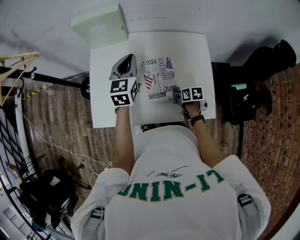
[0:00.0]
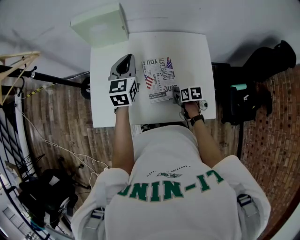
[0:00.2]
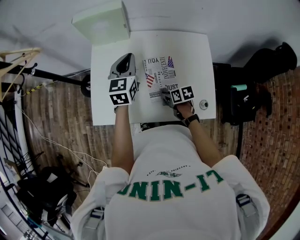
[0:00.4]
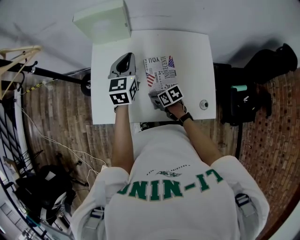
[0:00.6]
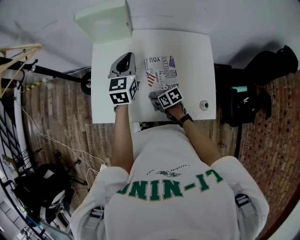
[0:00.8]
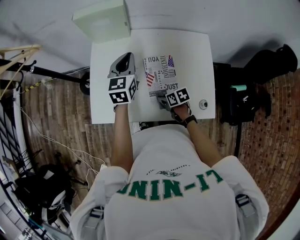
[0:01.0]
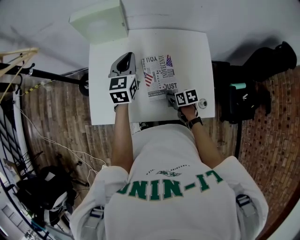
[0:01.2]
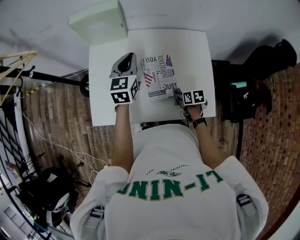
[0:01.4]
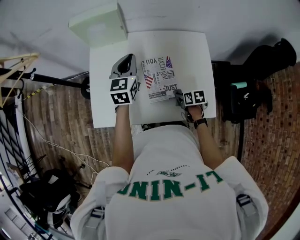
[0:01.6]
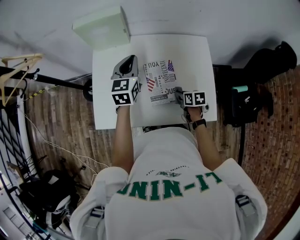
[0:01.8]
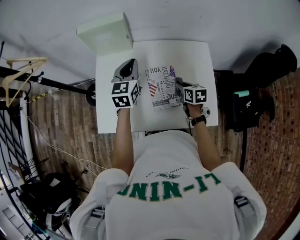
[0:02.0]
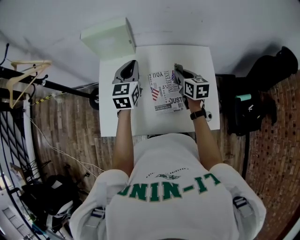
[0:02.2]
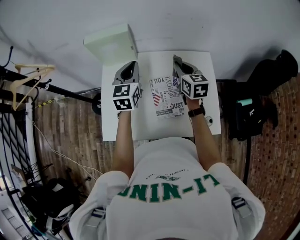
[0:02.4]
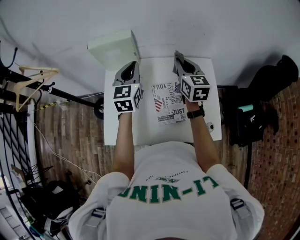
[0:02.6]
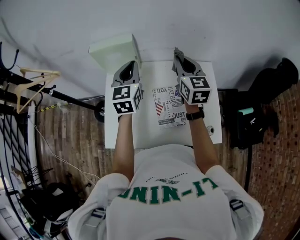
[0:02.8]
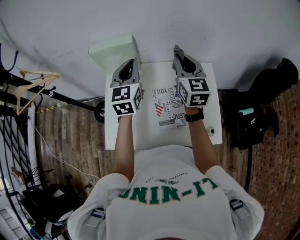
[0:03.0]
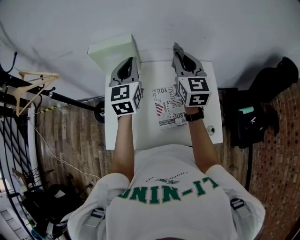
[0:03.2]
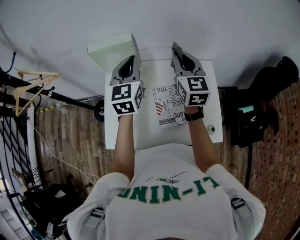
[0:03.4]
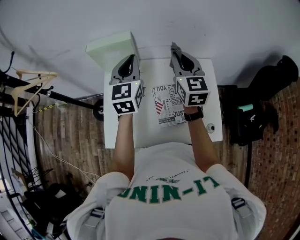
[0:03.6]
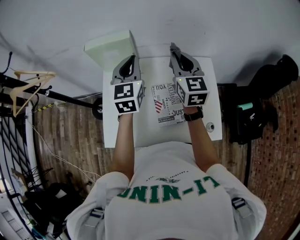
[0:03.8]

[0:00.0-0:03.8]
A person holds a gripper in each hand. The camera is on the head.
0:00.0 to 0:01.2: The right gripper travels to the left and back again, approximately 15 cm each way.
0:01.2 to 0:02.6: The left gripper goes roughly 10 cm upward. The right gripper travels upward and forward by approximately 40 cm, and points its fingers some 40 degrees further upward.
0:02.6 to 0:03.8: The right gripper travels upward by approximately 5 cm.

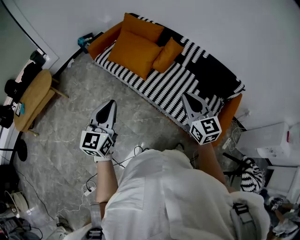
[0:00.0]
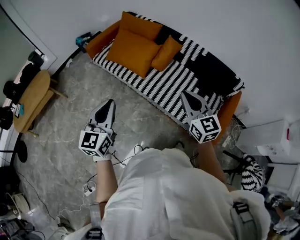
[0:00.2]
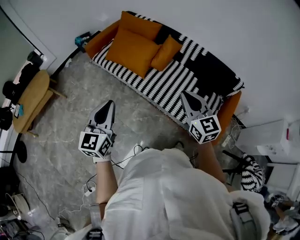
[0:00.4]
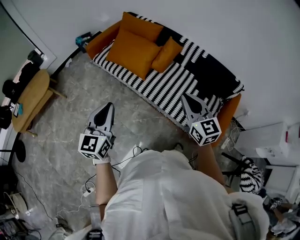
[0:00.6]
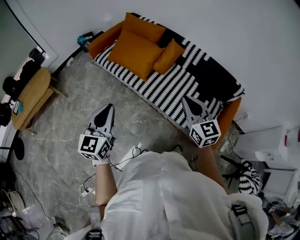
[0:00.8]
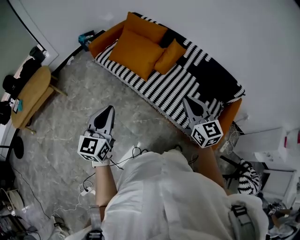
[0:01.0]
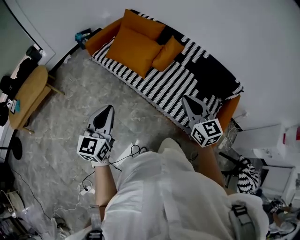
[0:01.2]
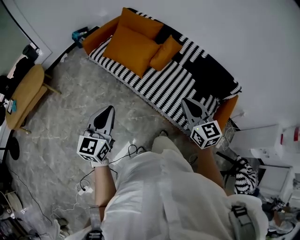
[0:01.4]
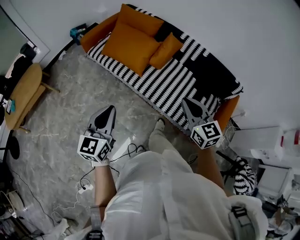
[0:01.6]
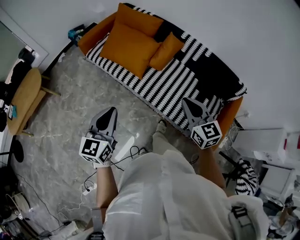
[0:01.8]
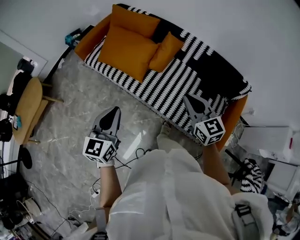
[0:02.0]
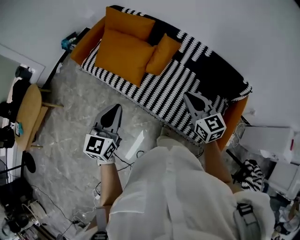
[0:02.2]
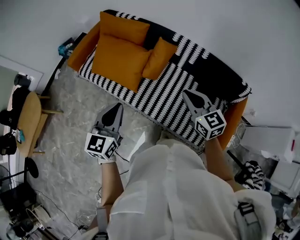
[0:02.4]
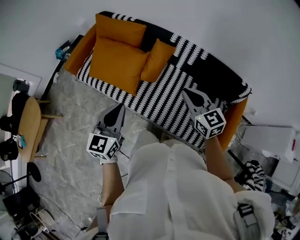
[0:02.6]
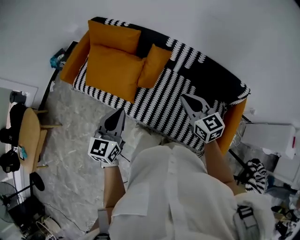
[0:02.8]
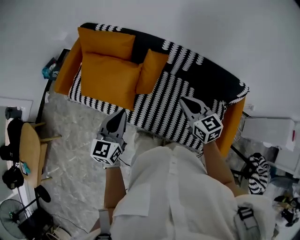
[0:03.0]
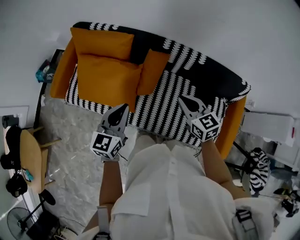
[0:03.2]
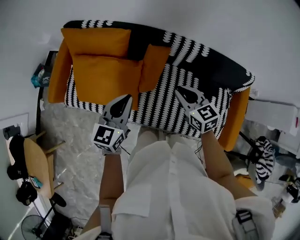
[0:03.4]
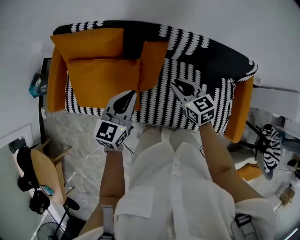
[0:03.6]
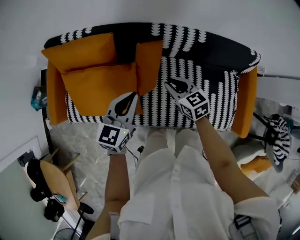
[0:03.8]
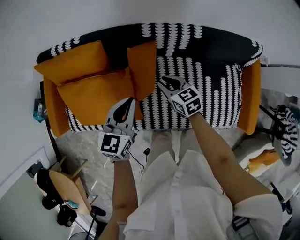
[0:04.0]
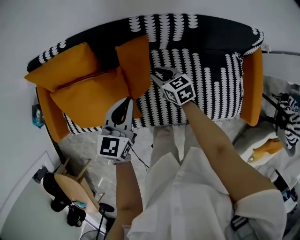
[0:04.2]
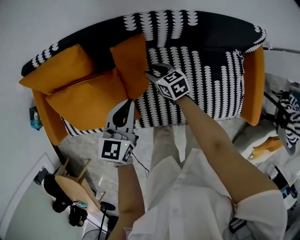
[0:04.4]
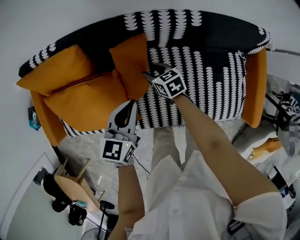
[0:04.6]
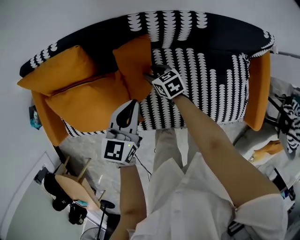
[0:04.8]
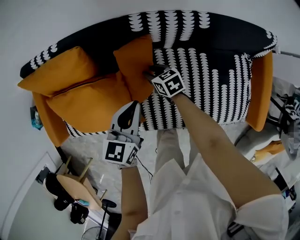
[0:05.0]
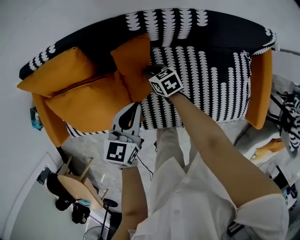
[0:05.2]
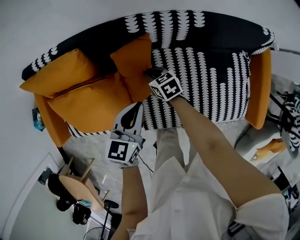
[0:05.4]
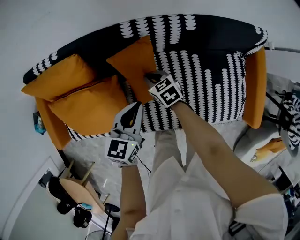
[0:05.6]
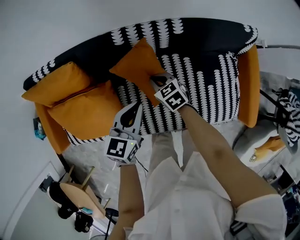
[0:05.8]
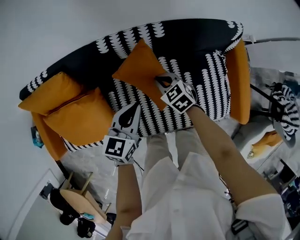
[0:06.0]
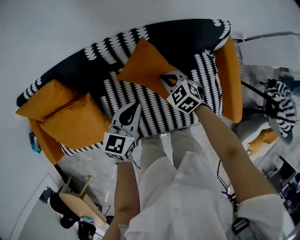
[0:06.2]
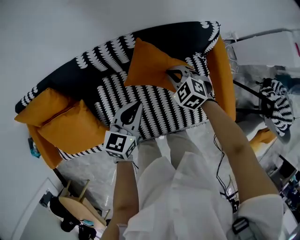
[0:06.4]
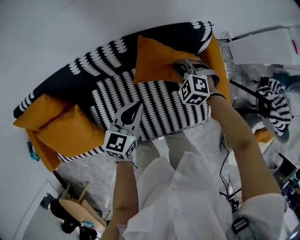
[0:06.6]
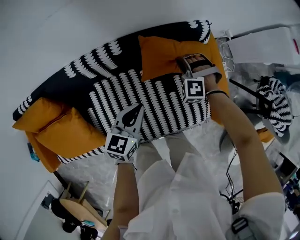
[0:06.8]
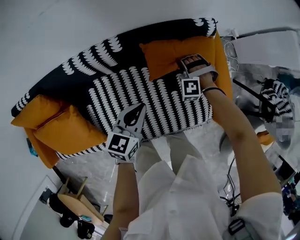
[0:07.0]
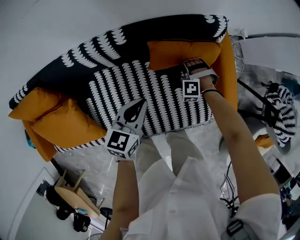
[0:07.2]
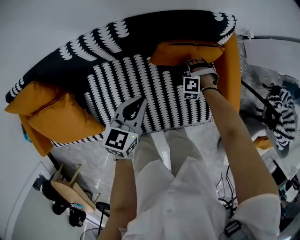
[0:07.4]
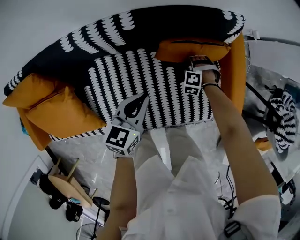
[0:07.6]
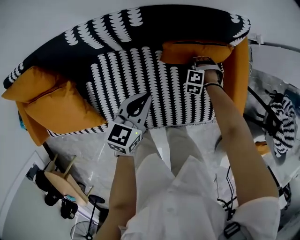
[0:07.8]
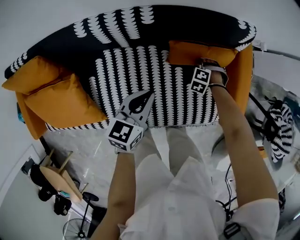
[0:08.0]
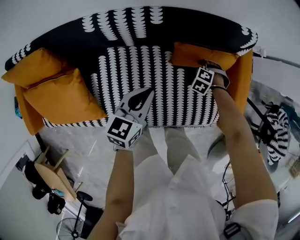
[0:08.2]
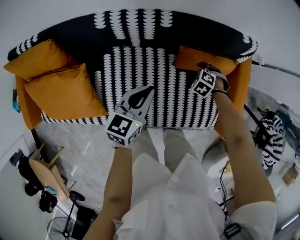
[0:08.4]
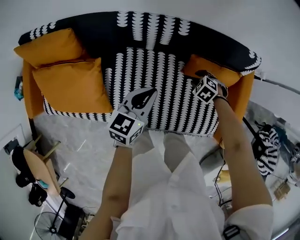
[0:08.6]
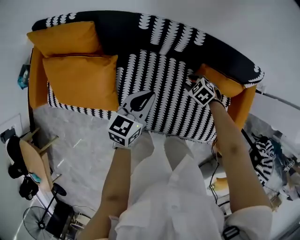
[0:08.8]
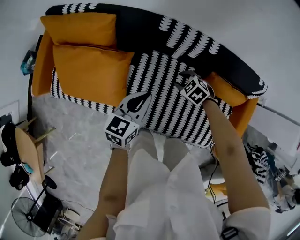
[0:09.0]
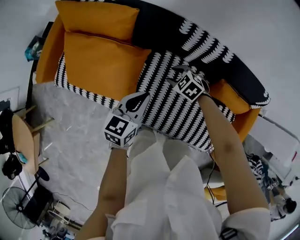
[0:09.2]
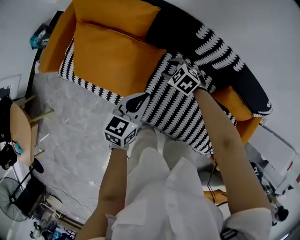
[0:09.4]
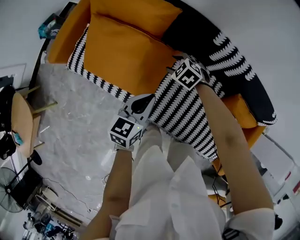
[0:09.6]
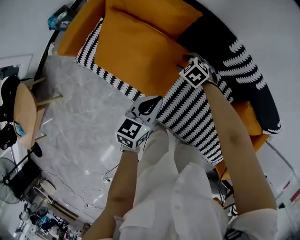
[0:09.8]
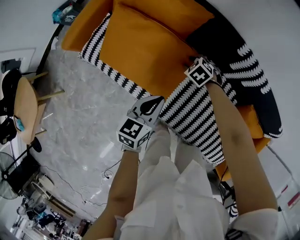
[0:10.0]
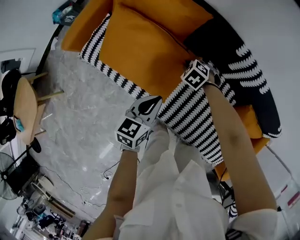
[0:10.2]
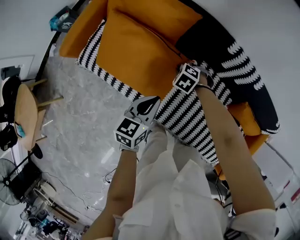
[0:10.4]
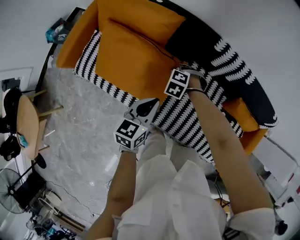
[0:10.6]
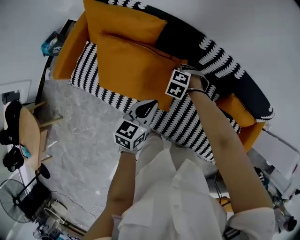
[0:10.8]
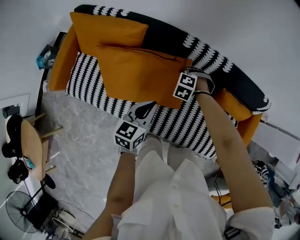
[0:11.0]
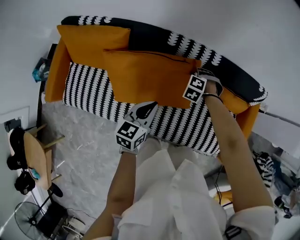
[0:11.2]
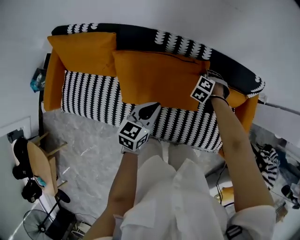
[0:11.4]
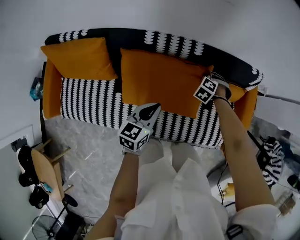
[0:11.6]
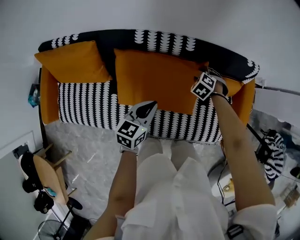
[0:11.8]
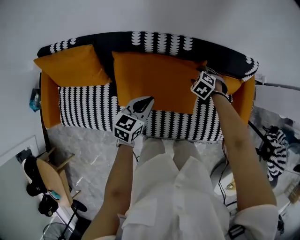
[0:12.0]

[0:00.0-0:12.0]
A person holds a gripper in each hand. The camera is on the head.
0:00.0 to 0:01.6: The right gripper moves roughly 5 cm. Meanwhile the left gripper changes place by about 5 cm.
0:01.6 to 0:03.0: The grippers both shift forward by about 35 cm.
0:03.0 to 0:04.4: The left gripper goes about 30 cm forward and downward, and swivels some 30 degrees, while the right gripper heads downward and forward, covering roughly 40 cm, changes its angle by about 30 degrees, and opens.
0:04.4 to 0:06.0: Both grippers move to the right, roughly 15 cm. The right gripper turns by some 20 degrees, and closes up.
0:06.0 to 0:07.6: The left gripper shifts by roughly 20 cm. The right gripper shifts by some 35 cm, and rolls counterclockwise, seen from behind, by about 60 degrees.
0:07.6 to 0:09.0: The right gripper ends up roughly 35 cm from where it was, rotates roughly 40 degrees, and opens its fingers. The left gripper changes place by about 25 cm, and rotates approximately 20 degrees.
0:09.0 to 0:10.4: The left gripper changes place by about 20 cm. Meanwhile the right gripper ends up approximately 30 cm from where it was, rotates approximately 30 degrees, and closes.
0:10.4 to 0:12.0: The left gripper changes place by some 30 cm, and changes its angle by about 40 degrees. Meanwhile the right gripper ends up approximately 50 cm from where it was, rotates about 30 degrees, and opens its fingers.

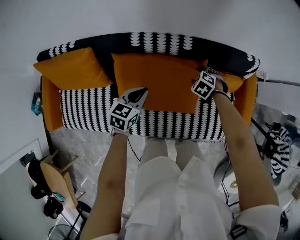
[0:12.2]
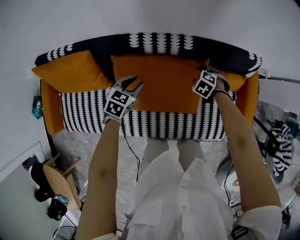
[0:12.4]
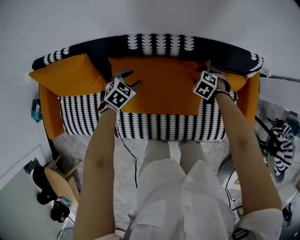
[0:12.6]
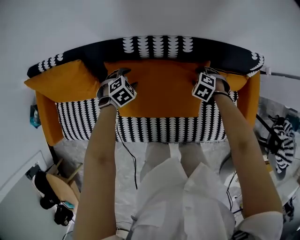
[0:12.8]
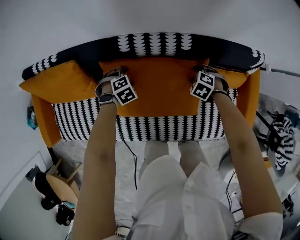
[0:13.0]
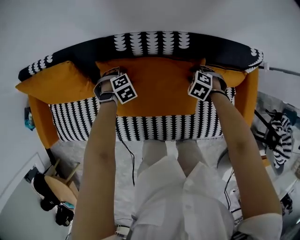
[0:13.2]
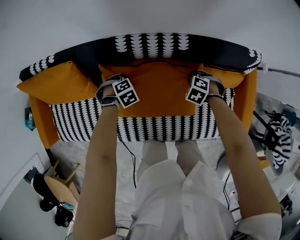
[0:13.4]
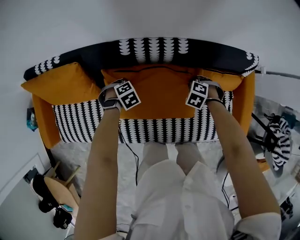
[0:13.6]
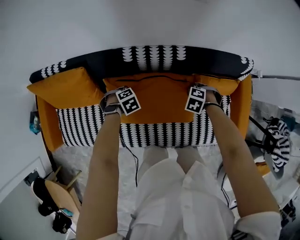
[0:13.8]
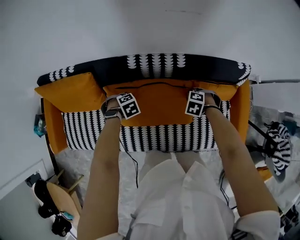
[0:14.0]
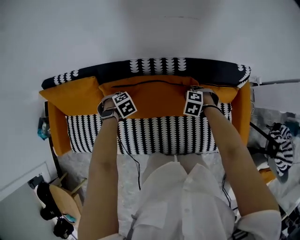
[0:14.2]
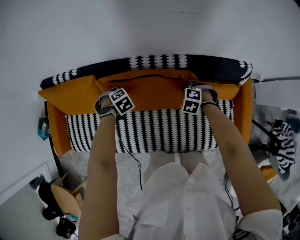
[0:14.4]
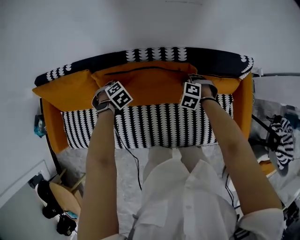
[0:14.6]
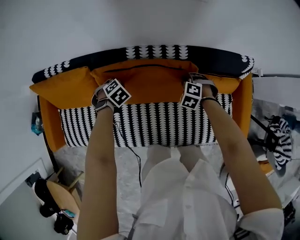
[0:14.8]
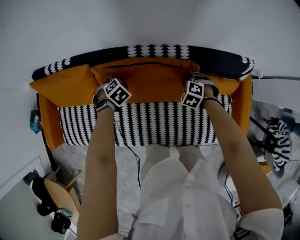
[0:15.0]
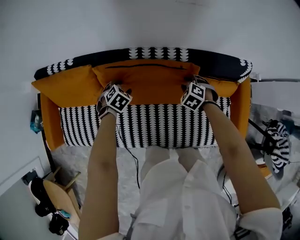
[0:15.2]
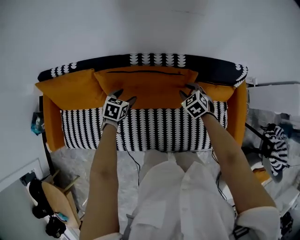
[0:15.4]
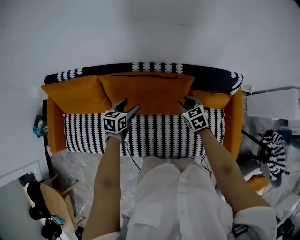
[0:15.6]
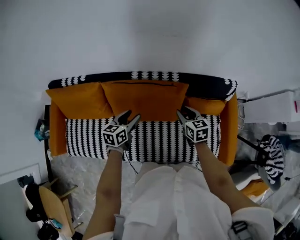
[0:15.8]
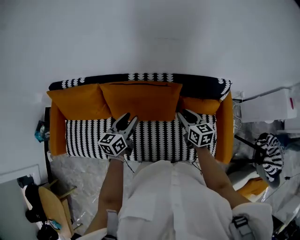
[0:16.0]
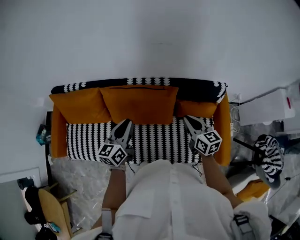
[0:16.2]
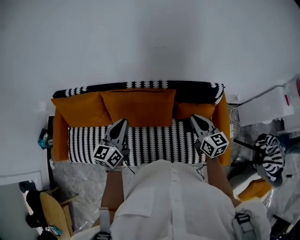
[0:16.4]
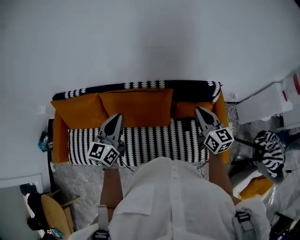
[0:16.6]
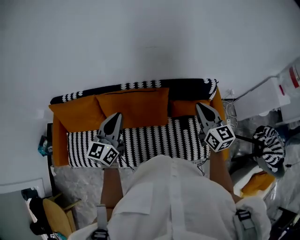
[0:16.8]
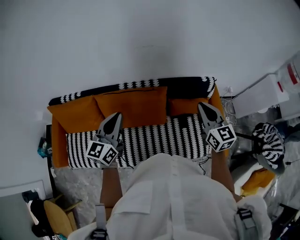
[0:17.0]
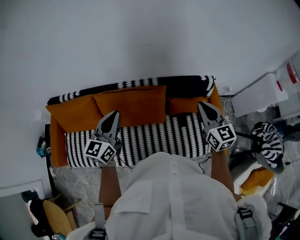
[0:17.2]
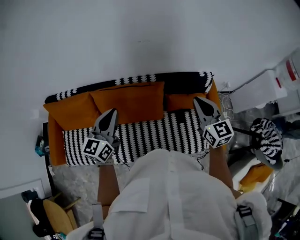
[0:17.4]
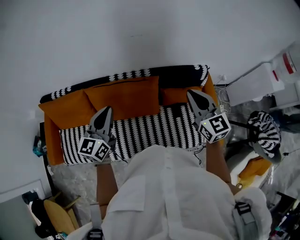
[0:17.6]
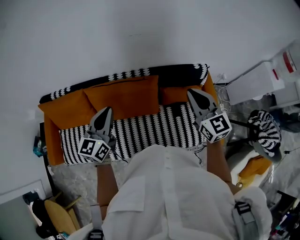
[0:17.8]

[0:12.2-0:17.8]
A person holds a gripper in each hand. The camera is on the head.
0:12.2 to 0:13.6: The left gripper goes roughly 15 cm downward, points its fingers about 50 degrees further downward, and opens, then closes again. Meanwhile the right gripper closes its fingers.
0:13.6 to 0:15.0: The right gripper shifts by roughly 10 cm. Meanwhile the left gripper is displaced upward by some 5 cm, and opens up.
0:15.0 to 0:16.4: The grippers both shift upward by some 35 cm. The right gripper tips its fingers upward by about 60 degrees. Meanwhile the left gripper points its fingers roughly 70 degrees further upward, and closes its fingers.
0:16.4 to 0:17.8: The right gripper is displaced upward by some 10 cm.

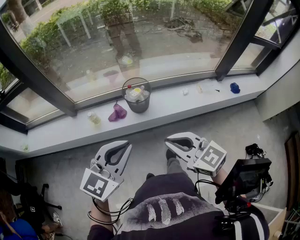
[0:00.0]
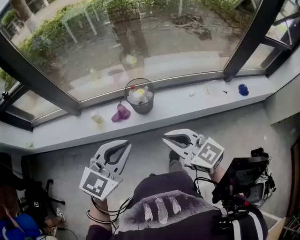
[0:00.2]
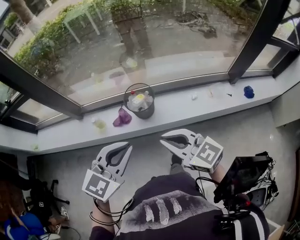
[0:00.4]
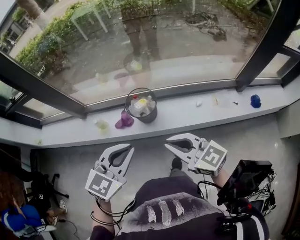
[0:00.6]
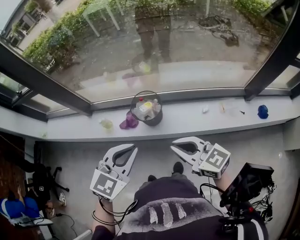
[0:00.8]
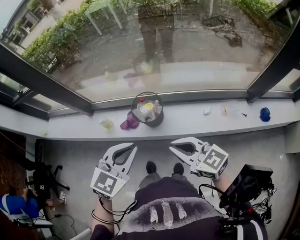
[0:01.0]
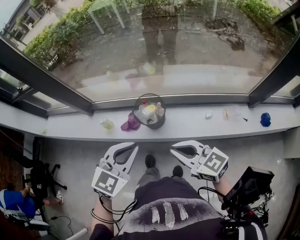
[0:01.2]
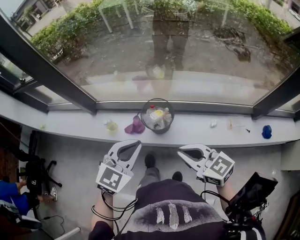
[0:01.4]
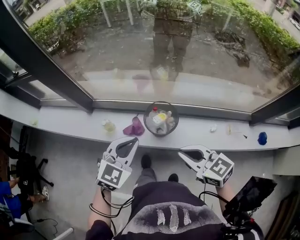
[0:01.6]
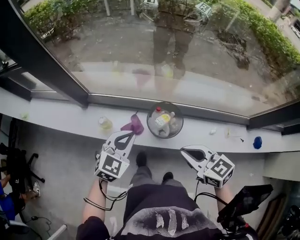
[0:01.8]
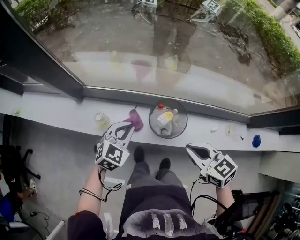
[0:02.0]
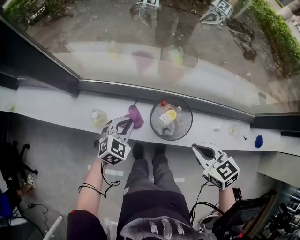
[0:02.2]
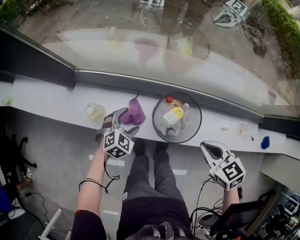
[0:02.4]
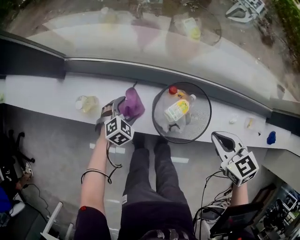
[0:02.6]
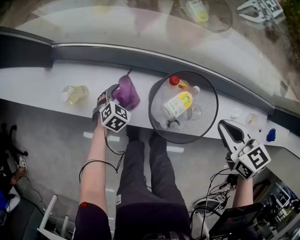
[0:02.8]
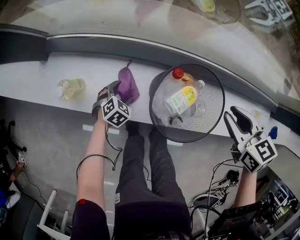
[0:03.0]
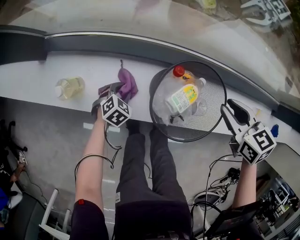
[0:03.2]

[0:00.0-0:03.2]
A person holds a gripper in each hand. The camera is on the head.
0:00.0 to 0:01.6: Both grippers move forward, some 25 cm. The left gripper turns by about 20 degrees.
0:01.6 to 0:03.2: The left gripper heads downward, covering about 60 cm, angles its fingers downward, by about 40 degrees, and opens, then closes again; the right gripper travels downward and forward by approximately 40 cm, turns by roughly 30 degrees, and opens its fingers.
